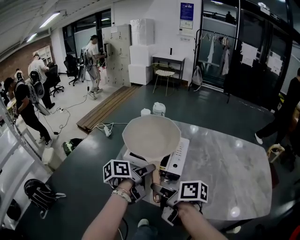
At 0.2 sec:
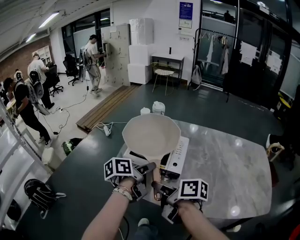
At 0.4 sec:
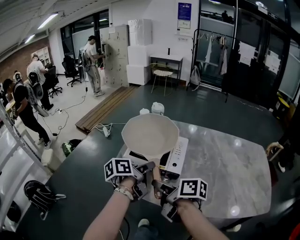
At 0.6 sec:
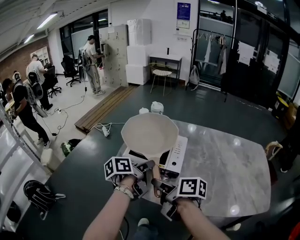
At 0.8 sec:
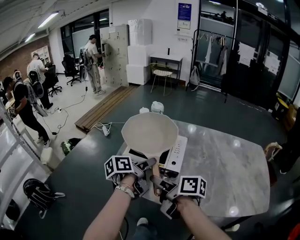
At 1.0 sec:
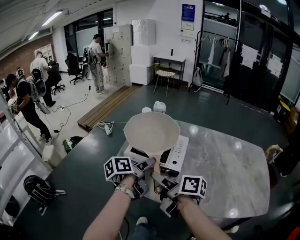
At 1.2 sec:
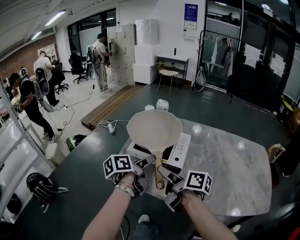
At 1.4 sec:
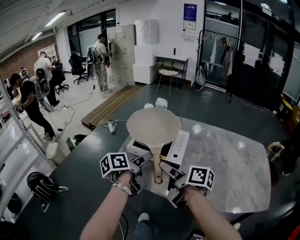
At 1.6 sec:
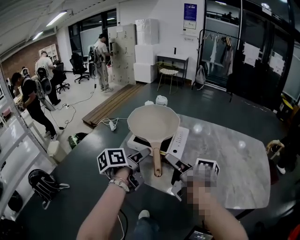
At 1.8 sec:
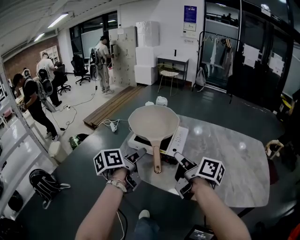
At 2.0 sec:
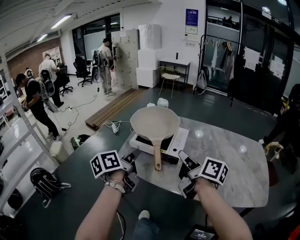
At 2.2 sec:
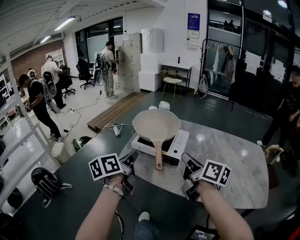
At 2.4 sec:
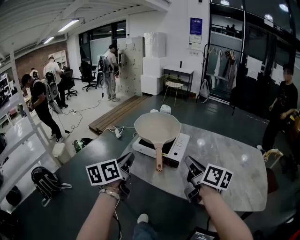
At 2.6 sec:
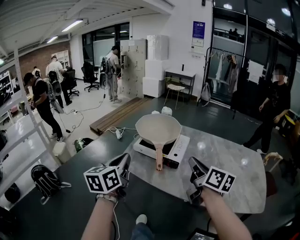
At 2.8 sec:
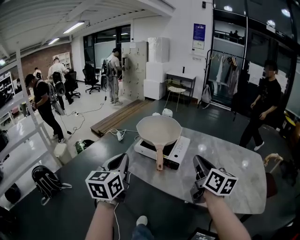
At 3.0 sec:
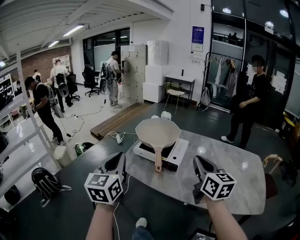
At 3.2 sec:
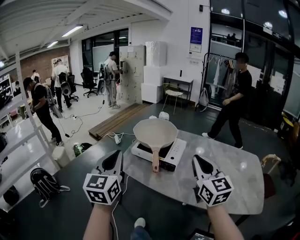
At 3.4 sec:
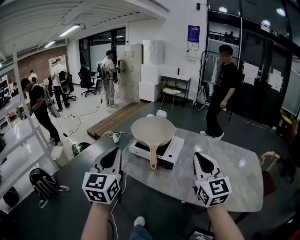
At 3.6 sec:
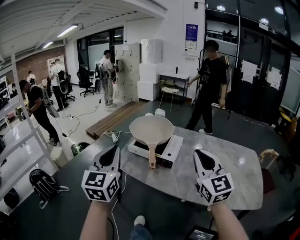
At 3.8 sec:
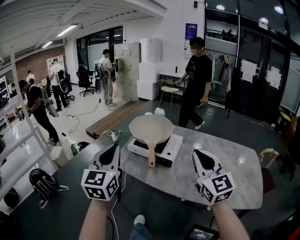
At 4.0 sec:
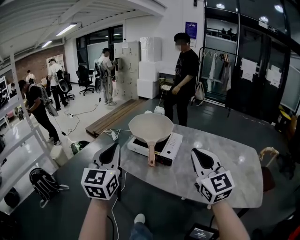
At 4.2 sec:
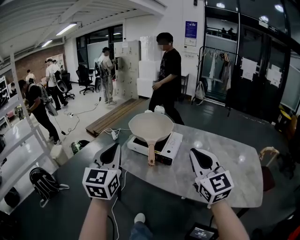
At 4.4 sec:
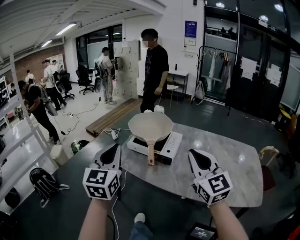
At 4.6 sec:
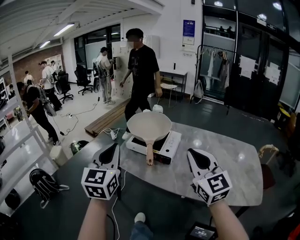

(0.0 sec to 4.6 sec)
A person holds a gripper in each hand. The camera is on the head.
0.0 sec - 1.6 sec: The right gripper shifts roughly 10 cm to the right and upward, and opens; the left gripper ends up roughly 5 cm from where it was.
1.6 sec - 3.0 sec: The left gripper moves upward, backward and to the left, some 20 cm, rolls clockwise, seen from behind, by some 50 degrees, and closes its fingers, while the right gripper goes roughly 15 cm upward, to the right and backward, rotates around the line of its fingers by approximately 50 degrees, counterclockwise from behind, and closes.
3.0 sec - 4.6 sec: The right gripper changes place by roughly 5 cm, and swivels about 30 degrees.

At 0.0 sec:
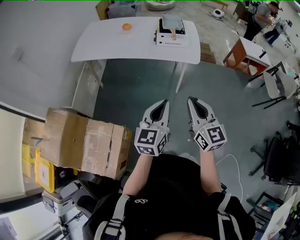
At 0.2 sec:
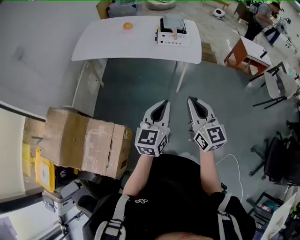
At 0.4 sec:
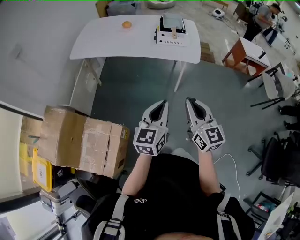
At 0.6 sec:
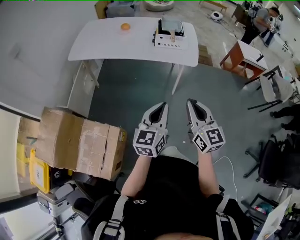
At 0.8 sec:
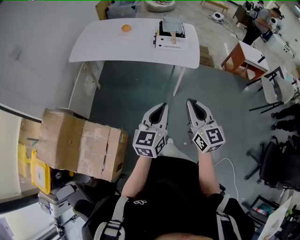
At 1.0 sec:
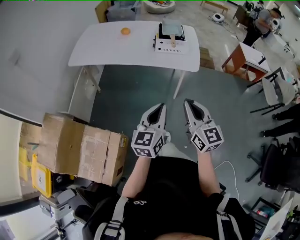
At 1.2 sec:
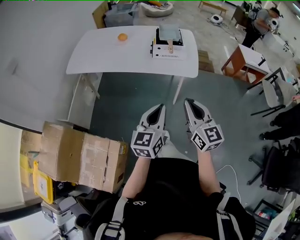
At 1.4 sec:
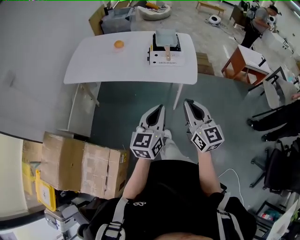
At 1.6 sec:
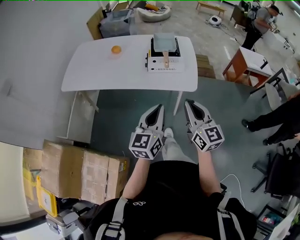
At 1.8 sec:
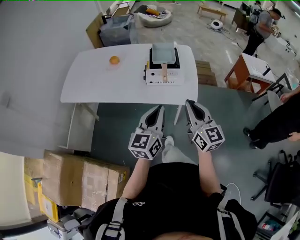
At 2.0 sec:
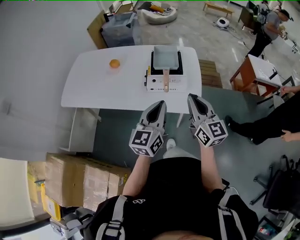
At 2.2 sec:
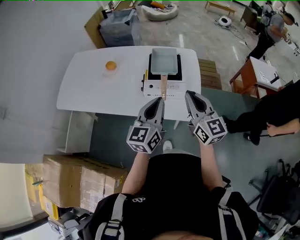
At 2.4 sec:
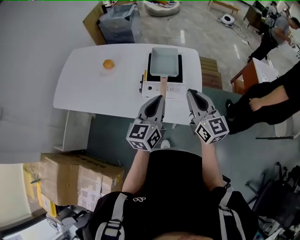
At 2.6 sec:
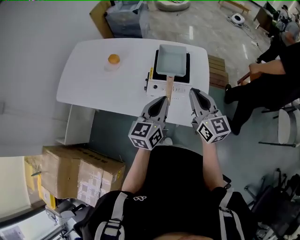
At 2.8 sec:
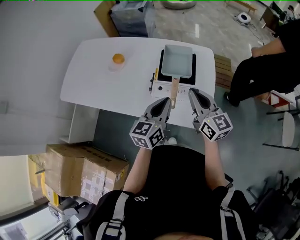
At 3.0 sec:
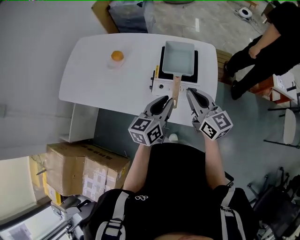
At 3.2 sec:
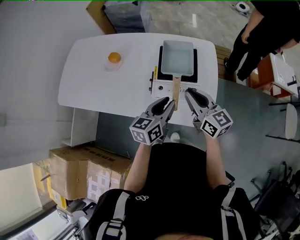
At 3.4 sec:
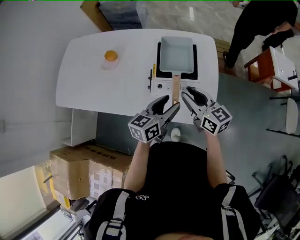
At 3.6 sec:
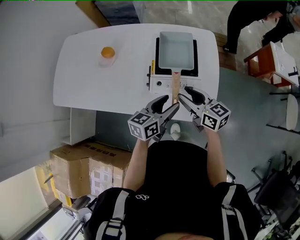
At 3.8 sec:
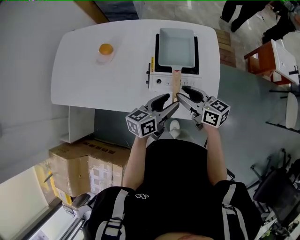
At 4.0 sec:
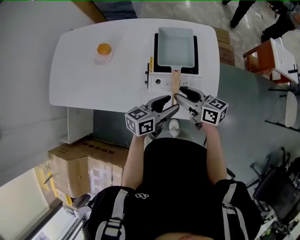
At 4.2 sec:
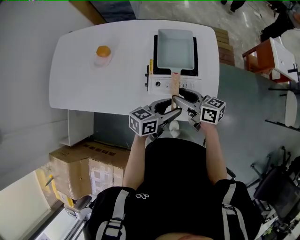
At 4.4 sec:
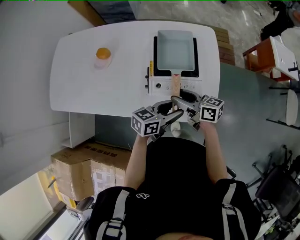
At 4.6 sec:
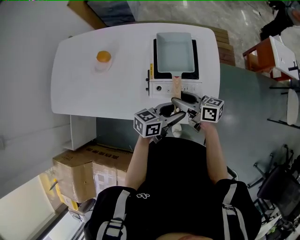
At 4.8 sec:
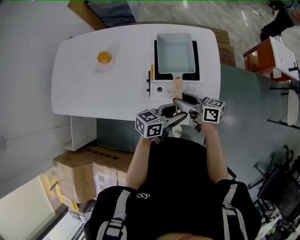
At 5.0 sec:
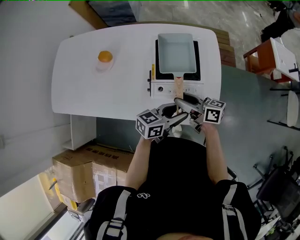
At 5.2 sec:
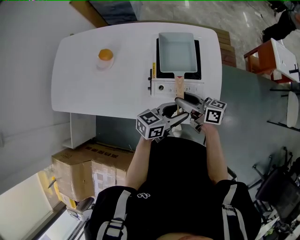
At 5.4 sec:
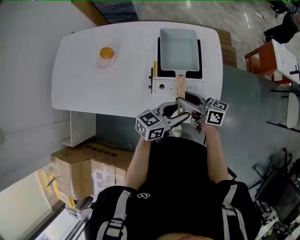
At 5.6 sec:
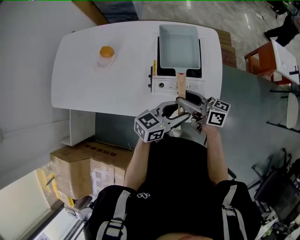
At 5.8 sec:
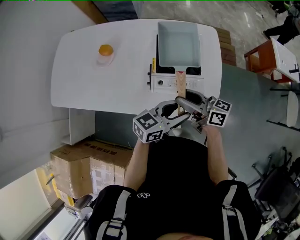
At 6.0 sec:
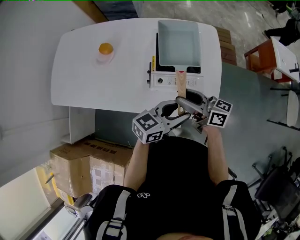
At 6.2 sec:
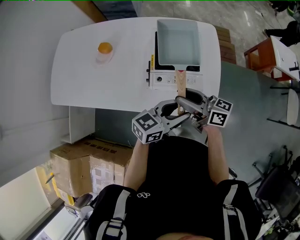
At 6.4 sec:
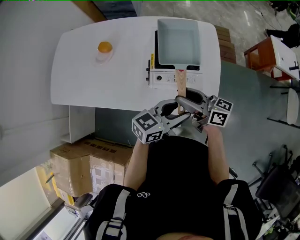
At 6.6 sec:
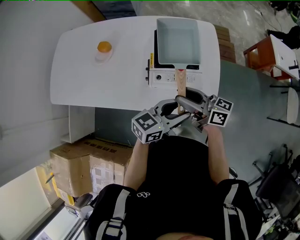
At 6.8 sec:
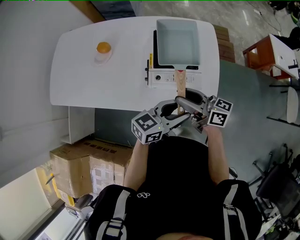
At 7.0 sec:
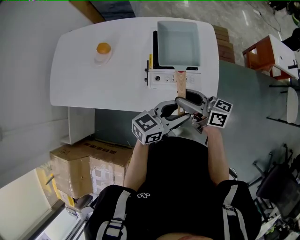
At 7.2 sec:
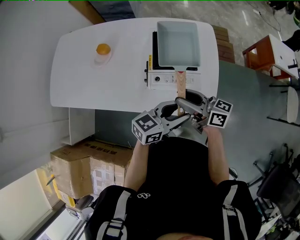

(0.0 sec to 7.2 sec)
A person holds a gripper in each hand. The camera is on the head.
0.0 sec - 1.4 sec: Both grippers travel together forward, approximately 15 cm.
1.4 sec - 2.8 sec: The two grippers go some 40 cm forward.
2.8 sec - 4.4 sec: The right gripper is displaced downward and to the left by about 15 cm, swivels approximately 40 degrees, and opens up; the left gripper is displaced downward by about 15 cm, changes its angle by roughly 40 degrees, and opens up.
4.4 sec - 5.8 sec: The two grippers go approximately 5 cm upward.
5.8 sec - 7.2 sec: There are only small adjustments of the grippers.

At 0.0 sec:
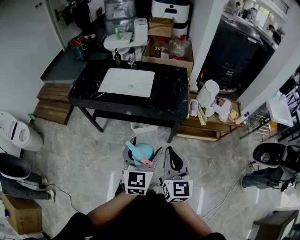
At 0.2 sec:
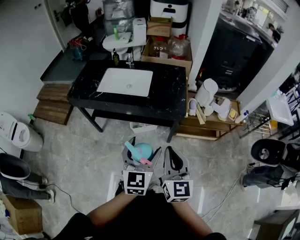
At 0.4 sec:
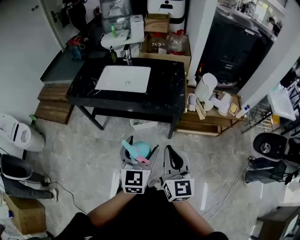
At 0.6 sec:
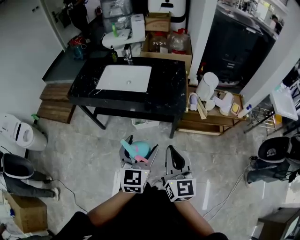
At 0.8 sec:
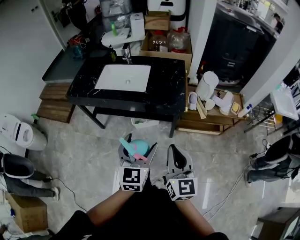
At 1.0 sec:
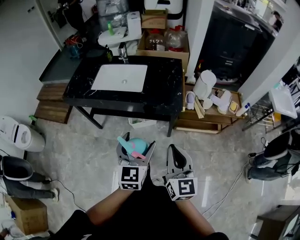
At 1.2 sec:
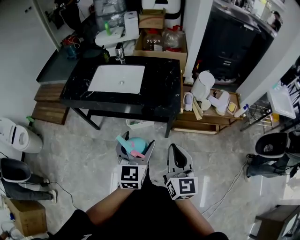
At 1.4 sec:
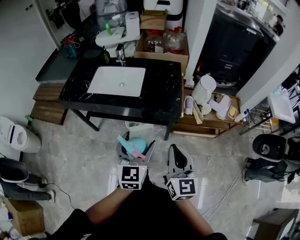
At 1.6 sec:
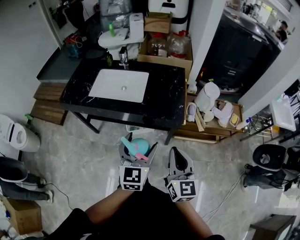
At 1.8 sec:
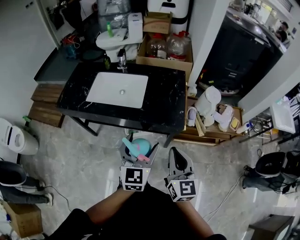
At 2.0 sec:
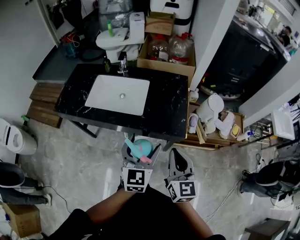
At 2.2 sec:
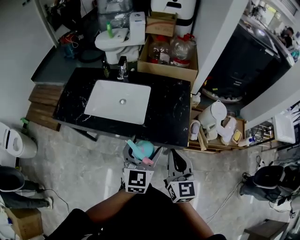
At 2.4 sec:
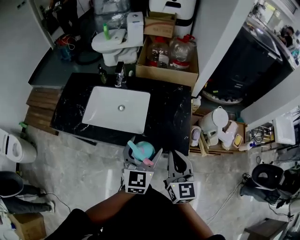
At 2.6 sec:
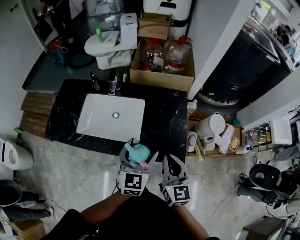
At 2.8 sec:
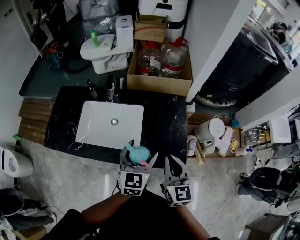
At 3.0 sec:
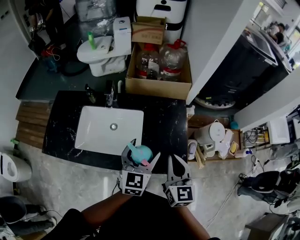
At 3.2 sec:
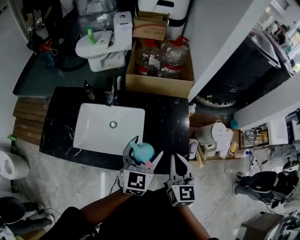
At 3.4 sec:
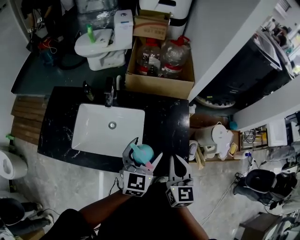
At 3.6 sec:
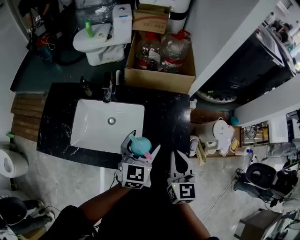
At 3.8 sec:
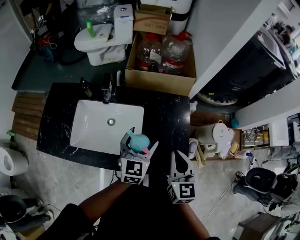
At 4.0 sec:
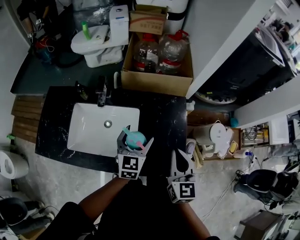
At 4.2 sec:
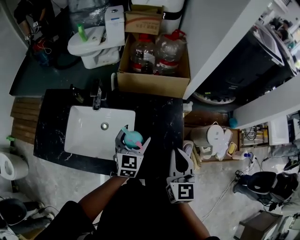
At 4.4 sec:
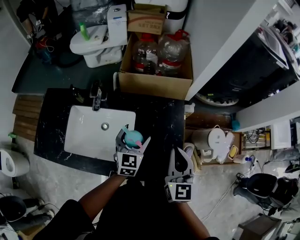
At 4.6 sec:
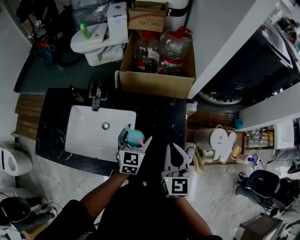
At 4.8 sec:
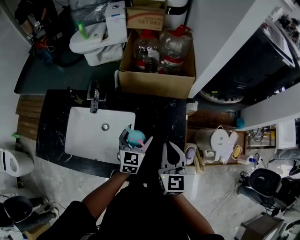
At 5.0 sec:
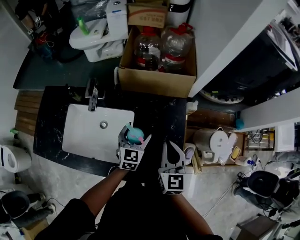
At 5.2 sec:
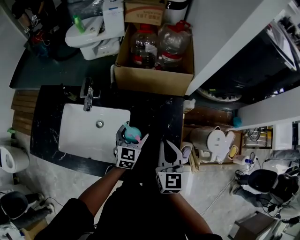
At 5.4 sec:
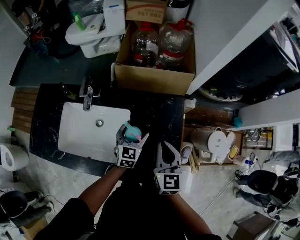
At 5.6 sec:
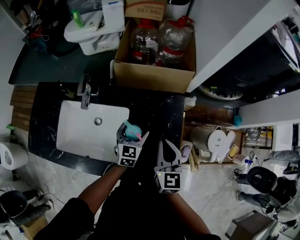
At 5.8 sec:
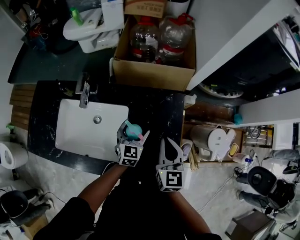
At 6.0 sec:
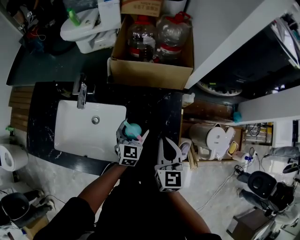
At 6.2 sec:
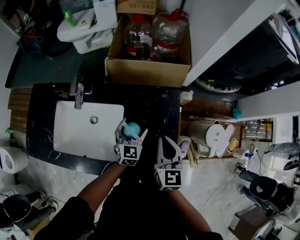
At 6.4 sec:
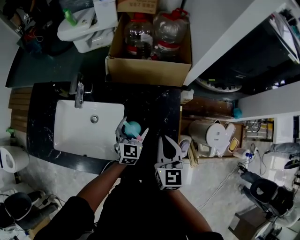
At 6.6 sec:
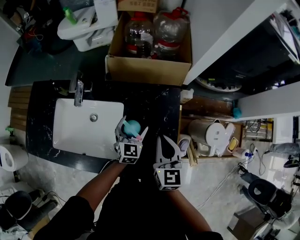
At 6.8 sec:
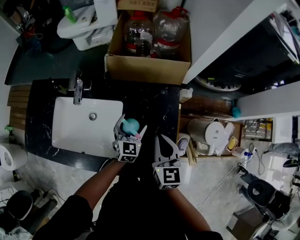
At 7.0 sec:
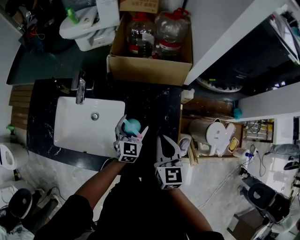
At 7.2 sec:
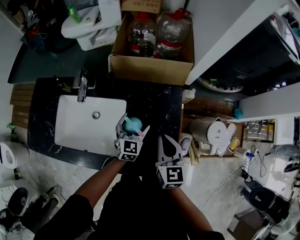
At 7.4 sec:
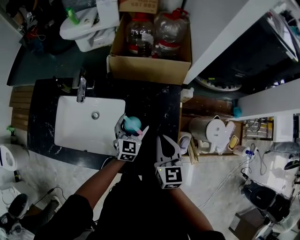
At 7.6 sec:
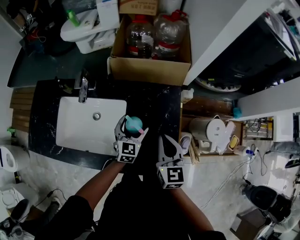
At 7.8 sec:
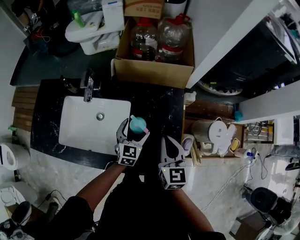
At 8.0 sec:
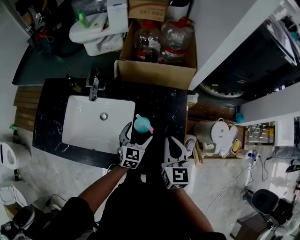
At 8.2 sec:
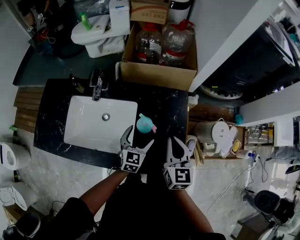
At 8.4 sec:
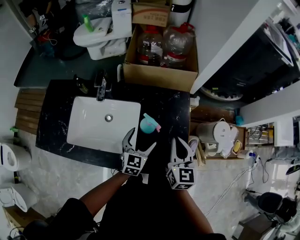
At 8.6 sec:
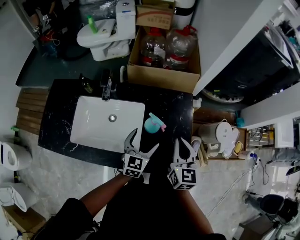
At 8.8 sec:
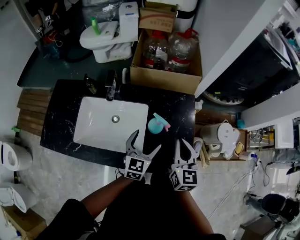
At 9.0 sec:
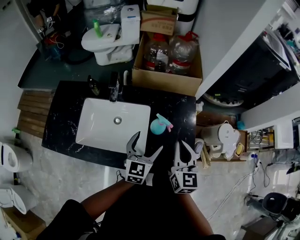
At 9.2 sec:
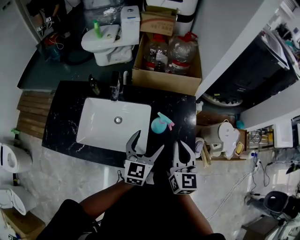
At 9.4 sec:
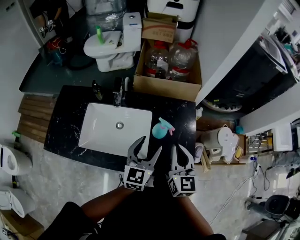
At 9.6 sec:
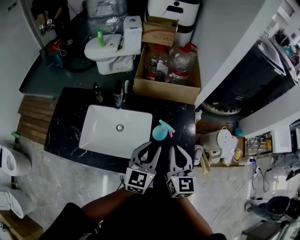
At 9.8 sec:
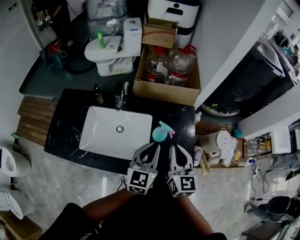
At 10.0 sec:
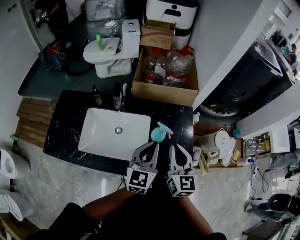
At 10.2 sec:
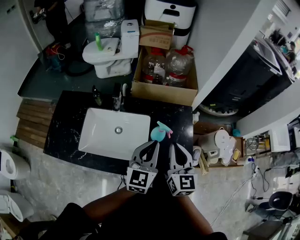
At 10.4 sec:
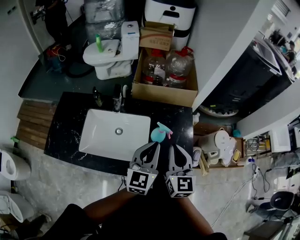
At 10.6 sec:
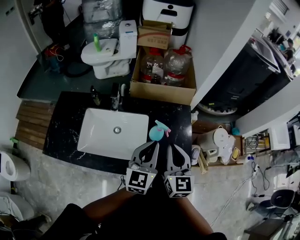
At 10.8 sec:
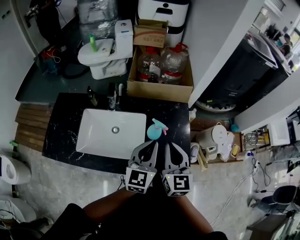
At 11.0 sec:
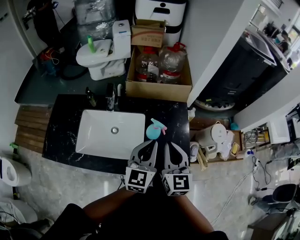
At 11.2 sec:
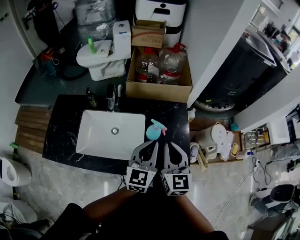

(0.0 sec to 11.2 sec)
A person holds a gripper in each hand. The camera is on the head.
0.0 sec - 1.6 sec: The right gripper shifts about 10 cm forward and to the right. The left gripper shifts approximately 10 cm forward.
1.6 sec - 3.2 sec: The two grippers go roughly 35 cm forward.
3.2 sec - 4.8 sec: The left gripper travels downward and forward by about 20 cm. The right gripper shifts roughly 15 cm forward and downward.
4.8 sec - 6.4 sec: The left gripper shifts roughly 5 cm downward, while the right gripper changes place by roughly 5 cm.
6.4 sec - 8.0 sec: The left gripper moves backward, approximately 5 cm.
8.0 sec - 9.6 sec: The right gripper goes about 10 cm upward, to the left and backward; the left gripper goes about 20 cm upward and backward, rotates some 20 degrees, and closes its fingers.
9.6 sec - 11.2 sec: The grippers make only small movements.
